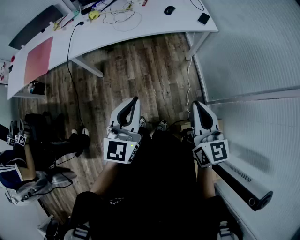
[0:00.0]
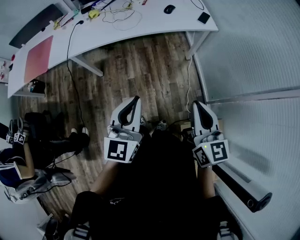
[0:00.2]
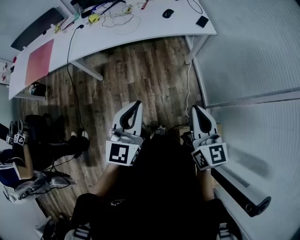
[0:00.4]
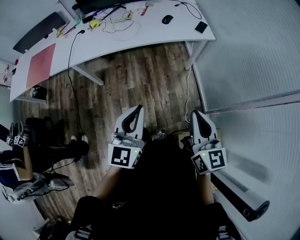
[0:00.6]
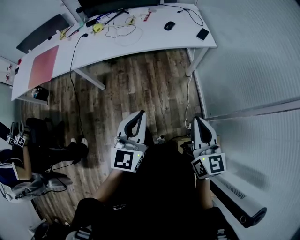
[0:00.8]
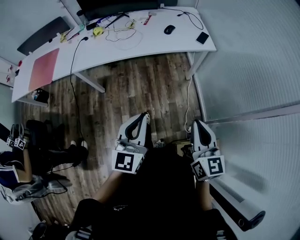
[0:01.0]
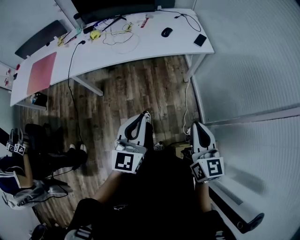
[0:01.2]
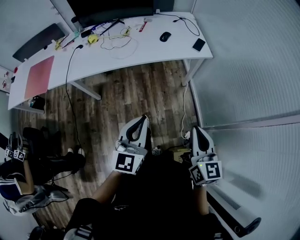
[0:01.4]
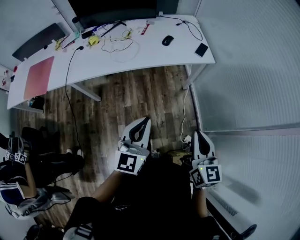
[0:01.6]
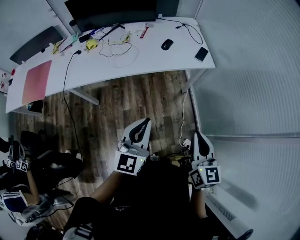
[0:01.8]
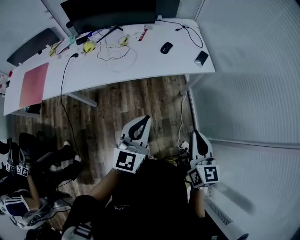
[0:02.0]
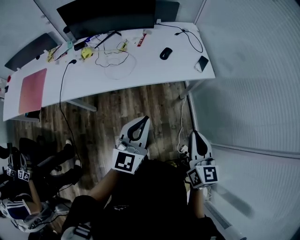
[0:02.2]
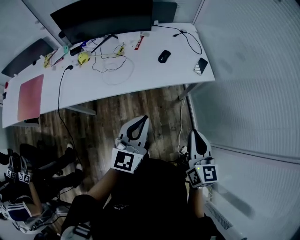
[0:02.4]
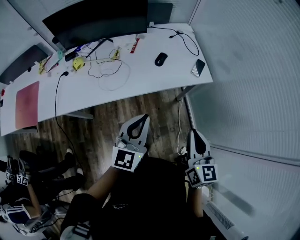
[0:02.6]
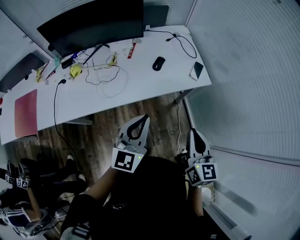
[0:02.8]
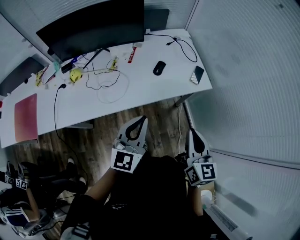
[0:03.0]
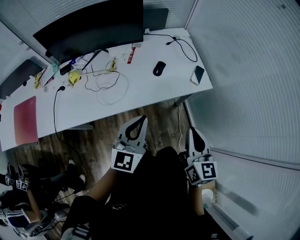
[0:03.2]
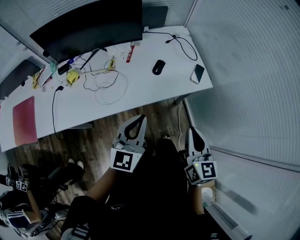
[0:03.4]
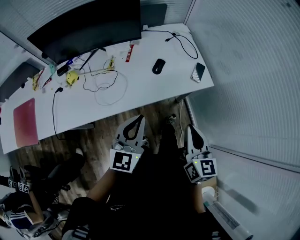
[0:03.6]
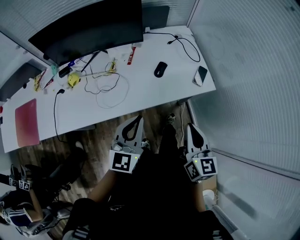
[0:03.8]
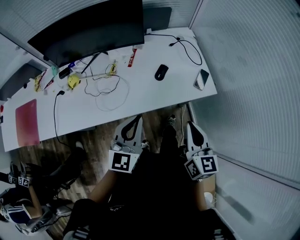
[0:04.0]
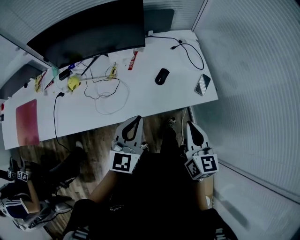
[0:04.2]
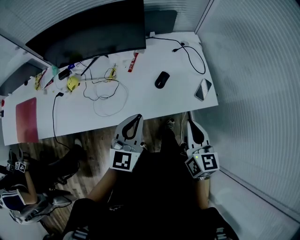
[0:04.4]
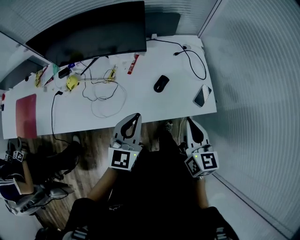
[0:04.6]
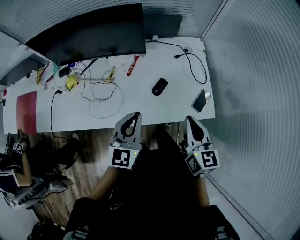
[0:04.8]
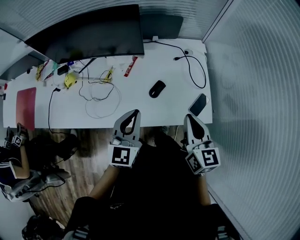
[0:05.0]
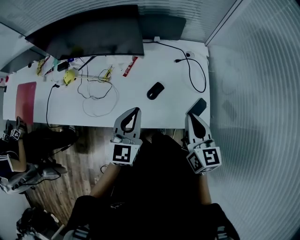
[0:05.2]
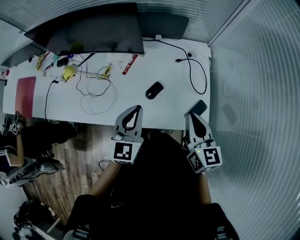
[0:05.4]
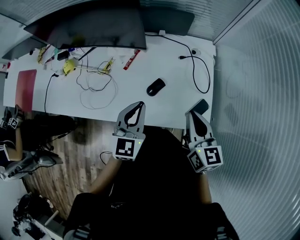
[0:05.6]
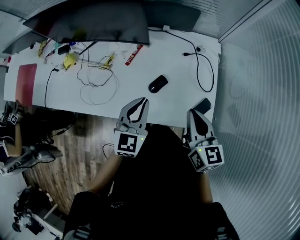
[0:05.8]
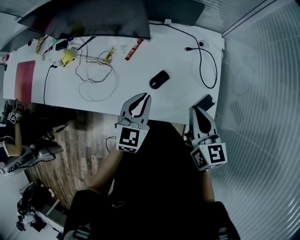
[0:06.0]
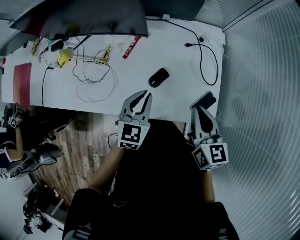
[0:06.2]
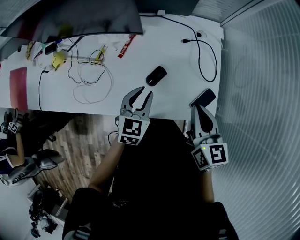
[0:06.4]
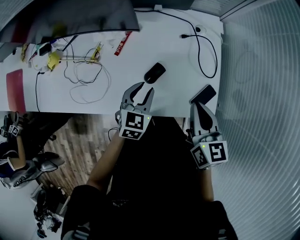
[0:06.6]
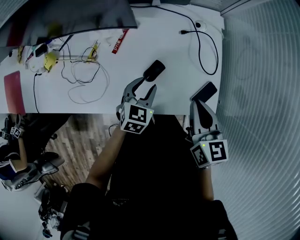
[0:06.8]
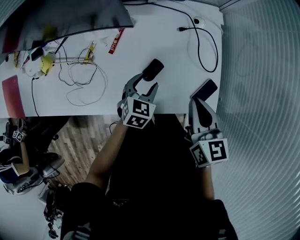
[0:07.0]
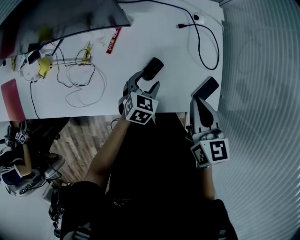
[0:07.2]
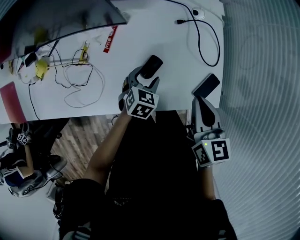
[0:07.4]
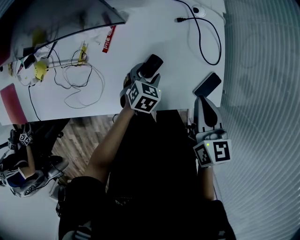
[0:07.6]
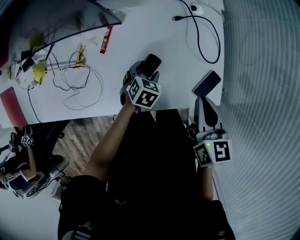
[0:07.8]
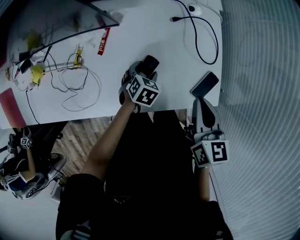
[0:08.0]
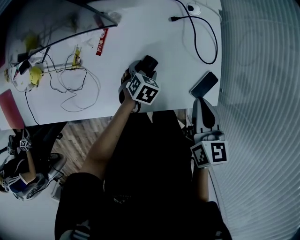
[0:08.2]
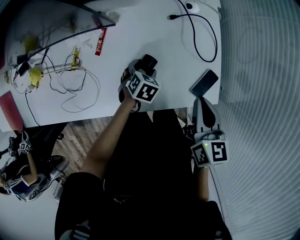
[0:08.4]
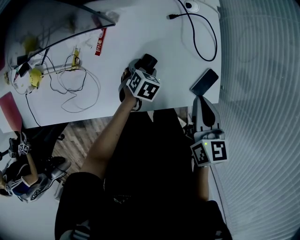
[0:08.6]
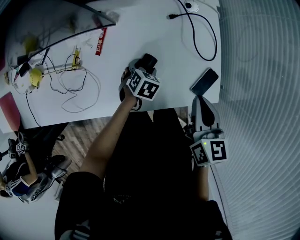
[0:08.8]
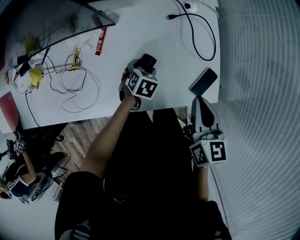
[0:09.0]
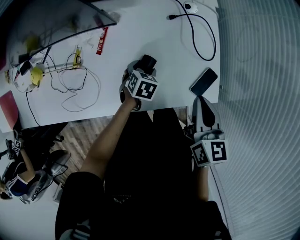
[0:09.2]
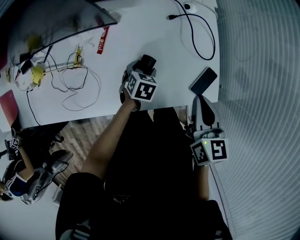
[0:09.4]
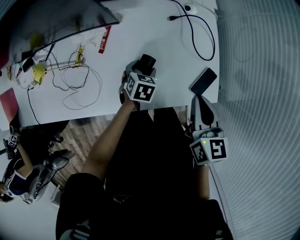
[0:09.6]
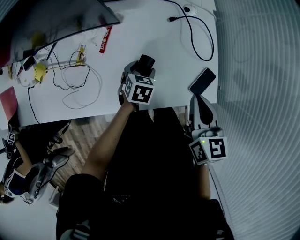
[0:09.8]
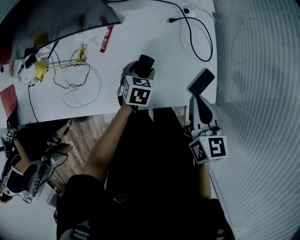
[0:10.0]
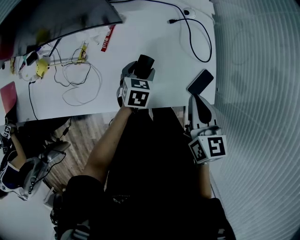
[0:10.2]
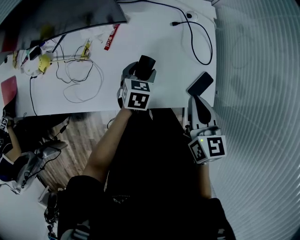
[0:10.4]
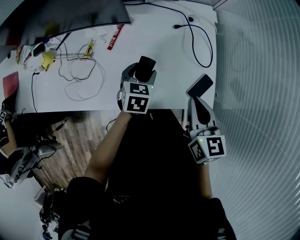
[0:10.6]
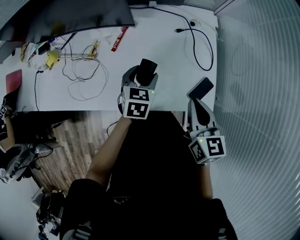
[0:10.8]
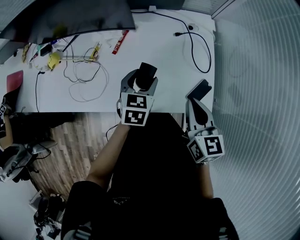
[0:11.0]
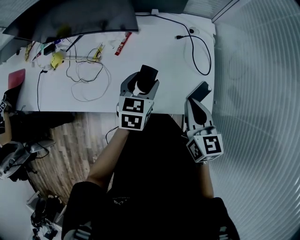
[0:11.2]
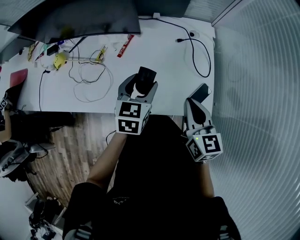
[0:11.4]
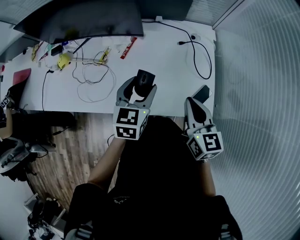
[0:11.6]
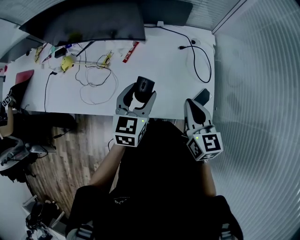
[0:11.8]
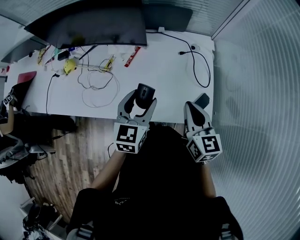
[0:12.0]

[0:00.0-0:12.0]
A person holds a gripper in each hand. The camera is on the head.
0:00.0 to 0:01.6: Both grippers travel together forward and to the right, approximately 10 cm.
0:01.6 to 0:03.0: The two grippers go approximately 30 cm forward.
0:03.0 to 0:04.4: Both grippers travel together forward, about 15 cm.
0:04.4 to 0:06.0: The left gripper is displaced forward, to the right and downward by some 20 cm, and swivels approximately 20 degrees. The right gripper travels forward and to the right by some 20 cm, and swivels approximately 20 degrees.
0:06.0 to 0:07.6: The left gripper travels downward by roughly 25 cm, angles its fingers downward, by some 40 degrees, and opens. The right gripper shifts some 10 cm downward and forward.
0:07.6 to 0:09.0: There are only small adjustments of the grippers.
0:09.0 to 0:10.4: The left gripper moves upward, roughly 10 cm, and rotates roughly 20 degrees.
0:10.4 to 0:12.0: The left gripper shifts some 25 cm upward and backward, and changes its angle by some 30 degrees, while the right gripper shifts roughly 5 cm upward.

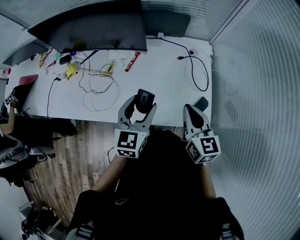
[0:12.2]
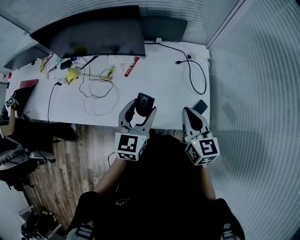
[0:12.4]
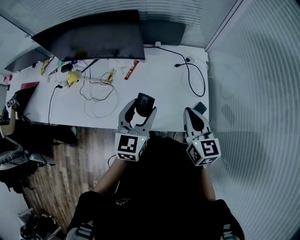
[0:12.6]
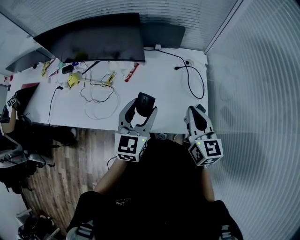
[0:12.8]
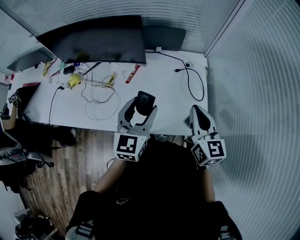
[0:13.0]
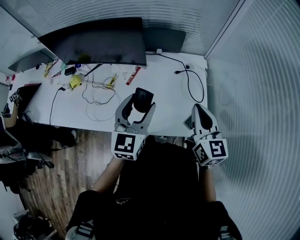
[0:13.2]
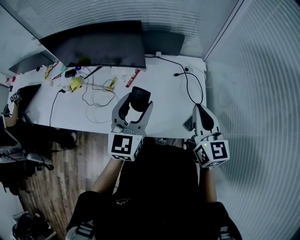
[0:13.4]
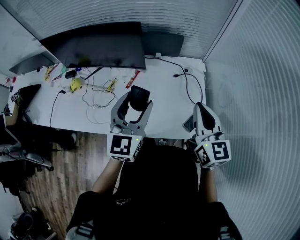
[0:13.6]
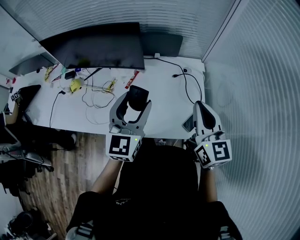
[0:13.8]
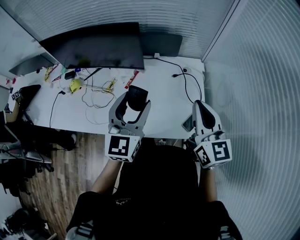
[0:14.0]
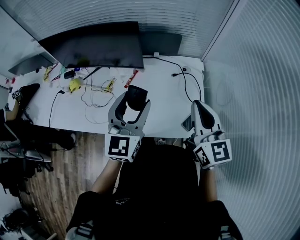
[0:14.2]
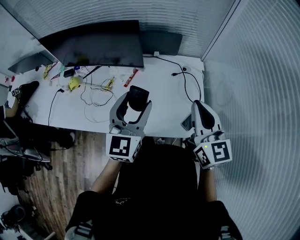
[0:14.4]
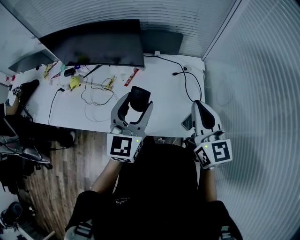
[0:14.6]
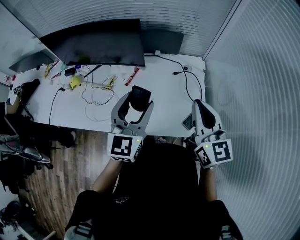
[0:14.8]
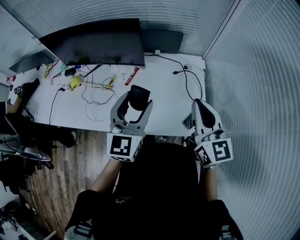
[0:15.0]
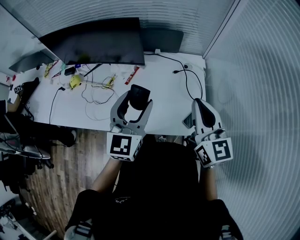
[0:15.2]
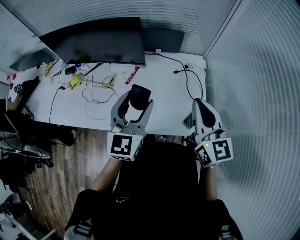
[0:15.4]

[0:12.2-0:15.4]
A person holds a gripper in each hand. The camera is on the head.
0:12.2 to 0:13.8: Both grippers travel together upward, about 10 cm.
0:13.8 to 0:15.4: The grippers move only a little.

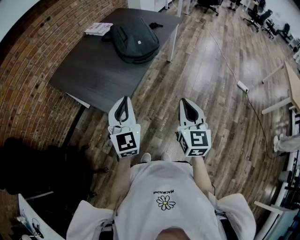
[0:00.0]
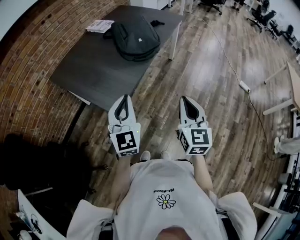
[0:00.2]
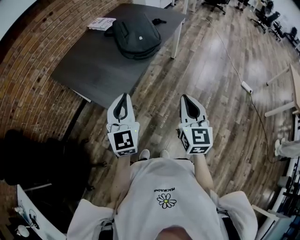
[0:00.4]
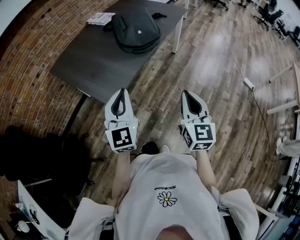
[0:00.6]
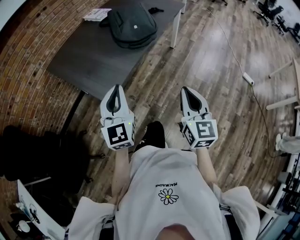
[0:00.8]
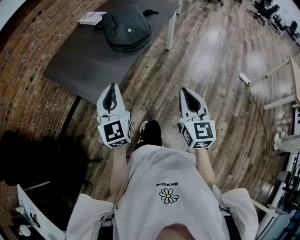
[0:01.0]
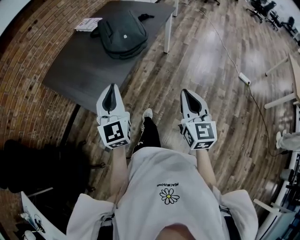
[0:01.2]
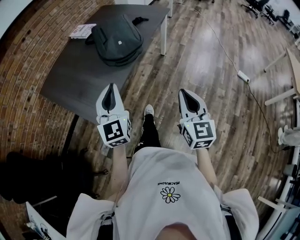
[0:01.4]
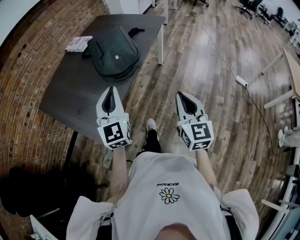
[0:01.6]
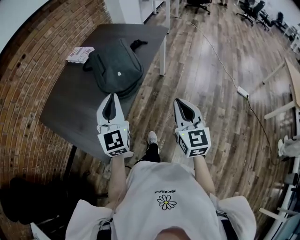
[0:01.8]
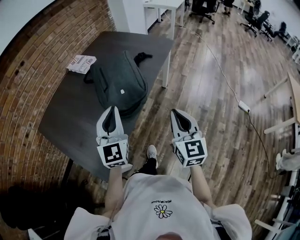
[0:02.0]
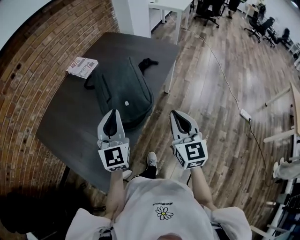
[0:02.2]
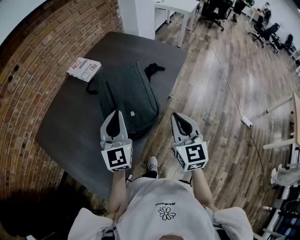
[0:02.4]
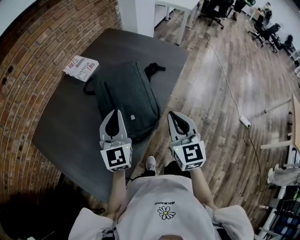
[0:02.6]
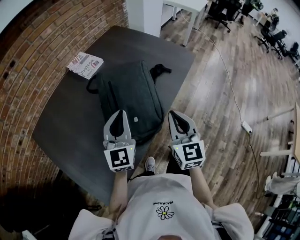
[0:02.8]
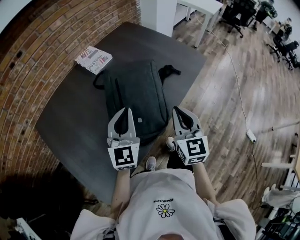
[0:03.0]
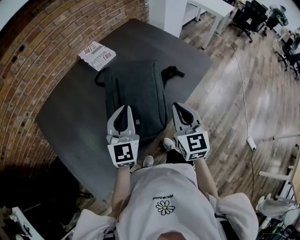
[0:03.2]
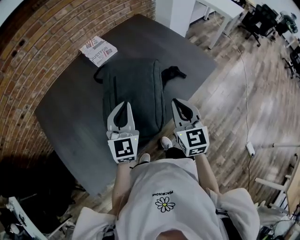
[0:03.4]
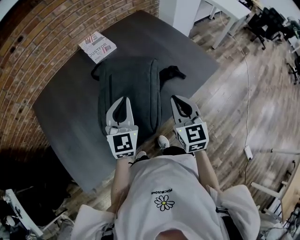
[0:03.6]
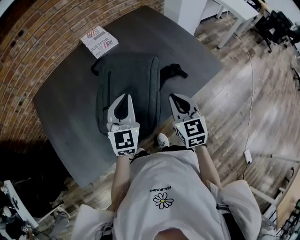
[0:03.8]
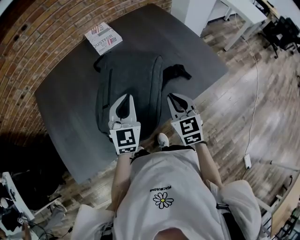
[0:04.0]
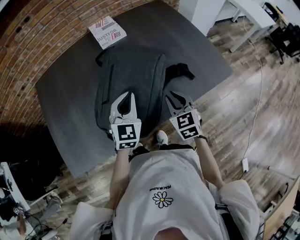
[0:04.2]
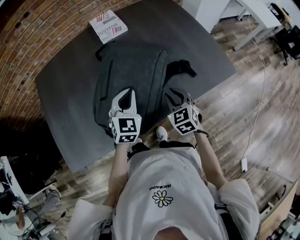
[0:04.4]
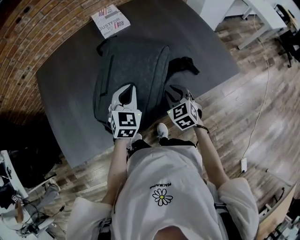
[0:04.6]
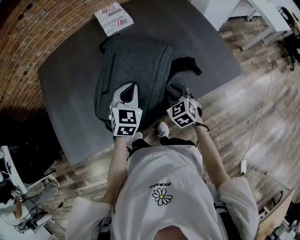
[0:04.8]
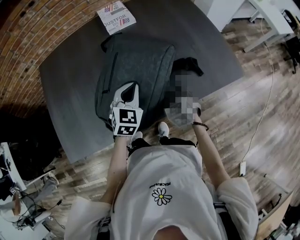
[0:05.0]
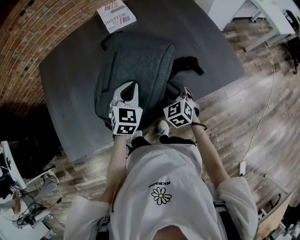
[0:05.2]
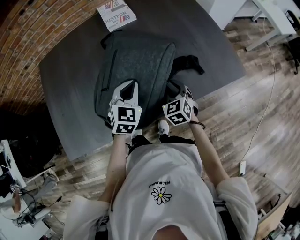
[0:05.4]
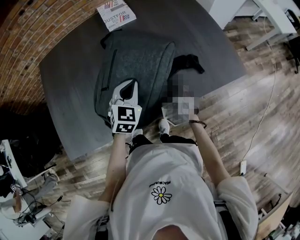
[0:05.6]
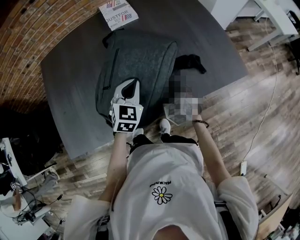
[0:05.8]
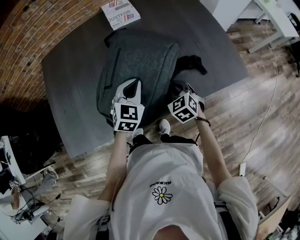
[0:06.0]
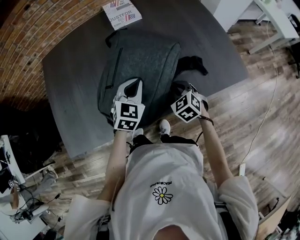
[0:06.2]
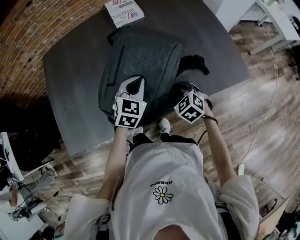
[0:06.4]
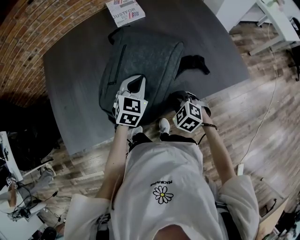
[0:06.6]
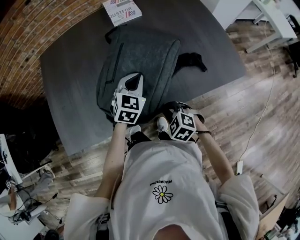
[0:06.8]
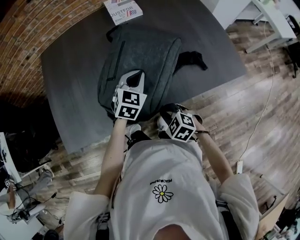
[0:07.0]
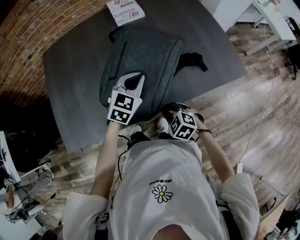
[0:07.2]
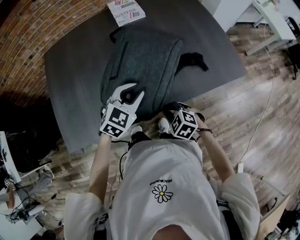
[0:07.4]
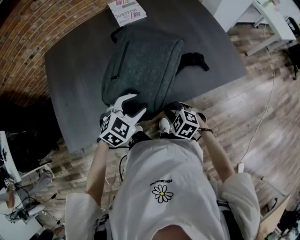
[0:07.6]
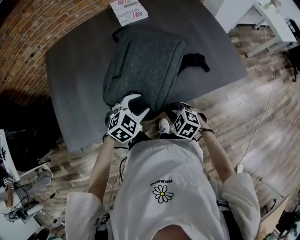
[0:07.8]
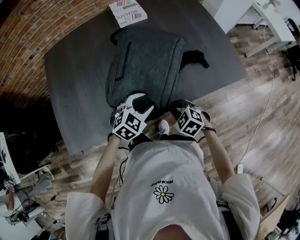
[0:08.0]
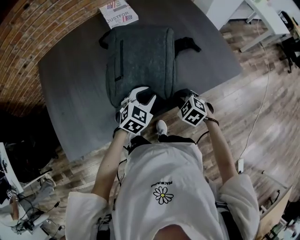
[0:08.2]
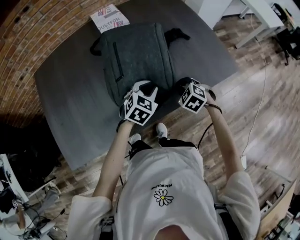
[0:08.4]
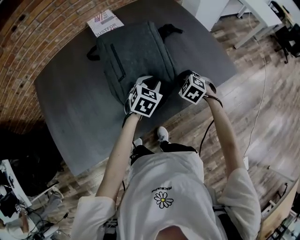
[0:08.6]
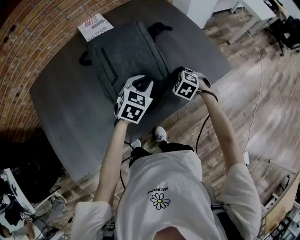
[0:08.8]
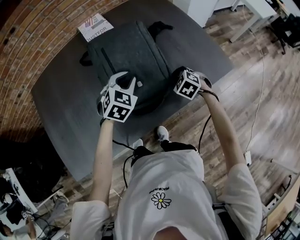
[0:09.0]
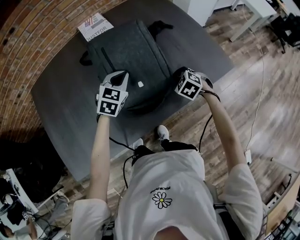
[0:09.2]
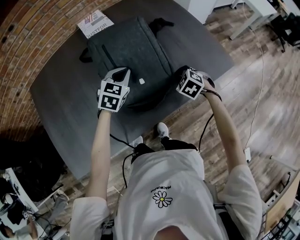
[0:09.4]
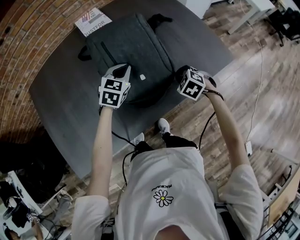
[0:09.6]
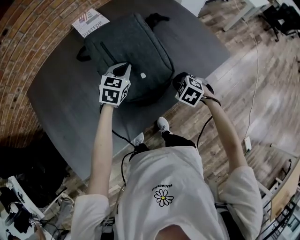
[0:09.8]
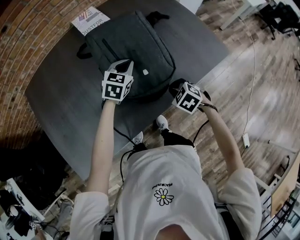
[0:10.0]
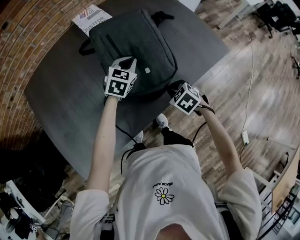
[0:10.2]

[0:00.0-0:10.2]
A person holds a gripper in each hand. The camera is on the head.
0:00.0 to 0:01.4: The right gripper heads to the right and forward, covering about 10 cm; the left gripper goes about 10 cm forward and to the right.
0:01.4 to 0:03.0: Both grippers are carried forward, roughly 40 cm.
0:03.0 to 0:04.4: The two grippers go roughly 15 cm downward. The right gripper changes its angle by roughly 50 degrees, and opens up. Meanwhile the left gripper turns by about 30 degrees.
0:04.4 to 0:05.8: The right gripper is displaced downward by some 5 cm.
0:05.8 to 0:07.2: The right gripper heads backward and to the left, covering approximately 15 cm, and changes its angle by about 30 degrees.
0:07.2 to 0:08.8: The left gripper travels to the right by approximately 10 cm, moves some 10 cm backward and comes back, and opens its fingers, while the right gripper moves forward and to the right, some 25 cm, and changes its angle by roughly 20 degrees.
0:08.8 to 0:10.2: The right gripper goes approximately 15 cm backward and to the left, and turns by some 20 degrees. Meanwhile the left gripper is displaced to the left by roughly 10 cm, and closes its fingers.
